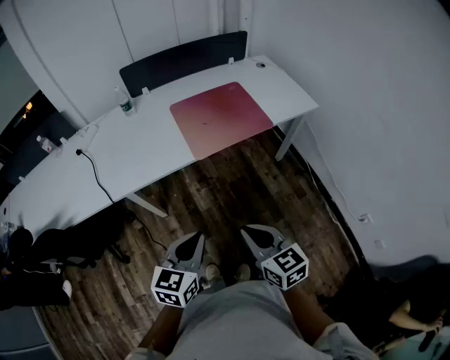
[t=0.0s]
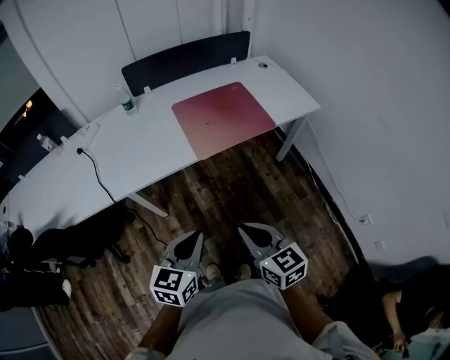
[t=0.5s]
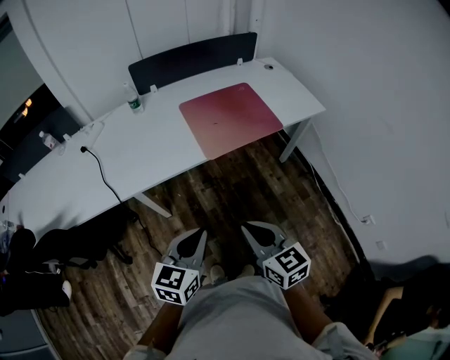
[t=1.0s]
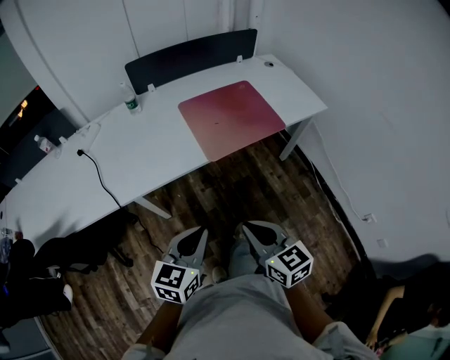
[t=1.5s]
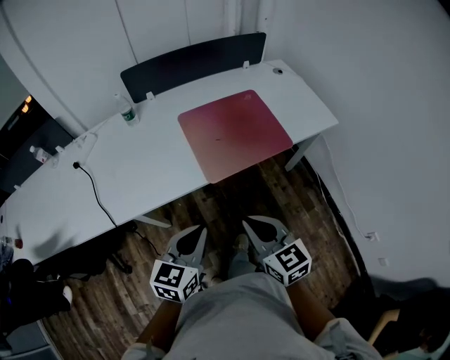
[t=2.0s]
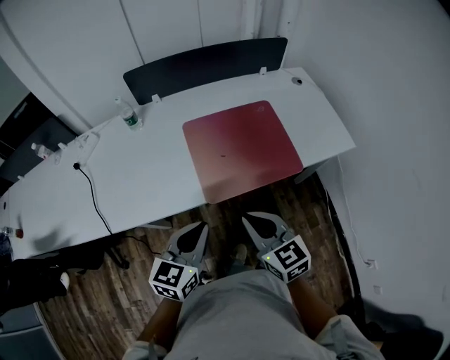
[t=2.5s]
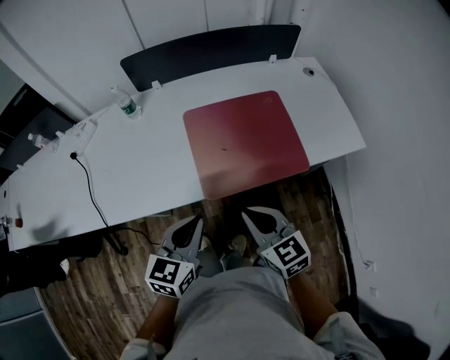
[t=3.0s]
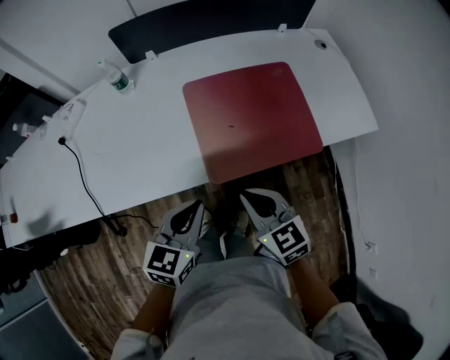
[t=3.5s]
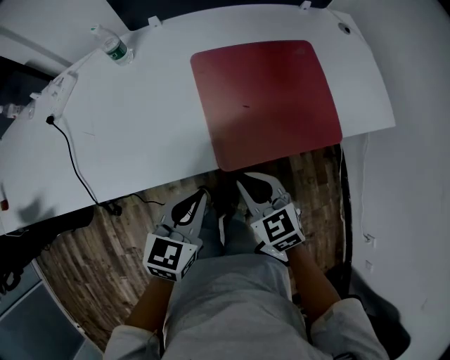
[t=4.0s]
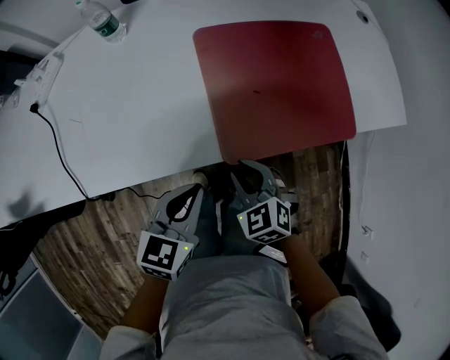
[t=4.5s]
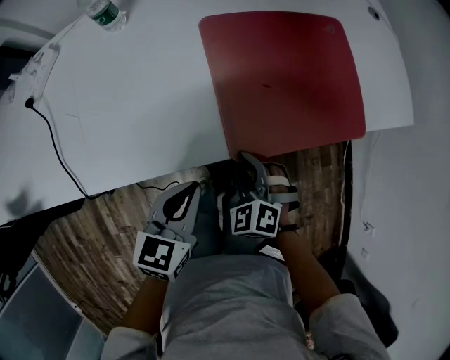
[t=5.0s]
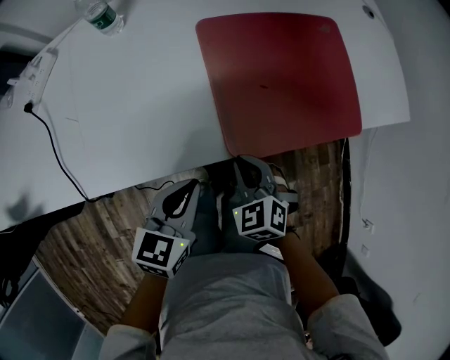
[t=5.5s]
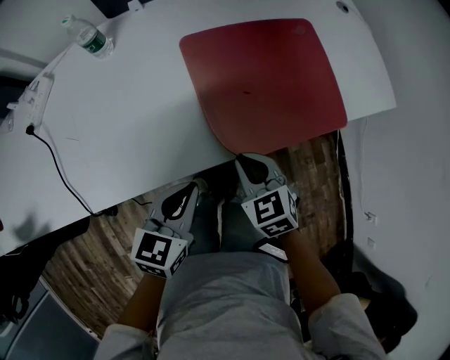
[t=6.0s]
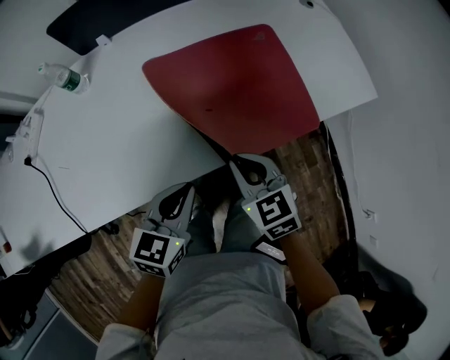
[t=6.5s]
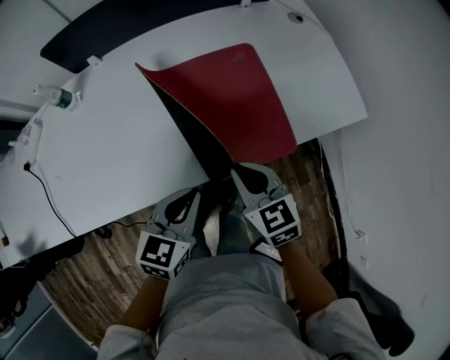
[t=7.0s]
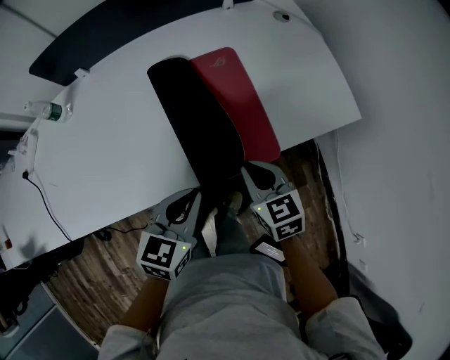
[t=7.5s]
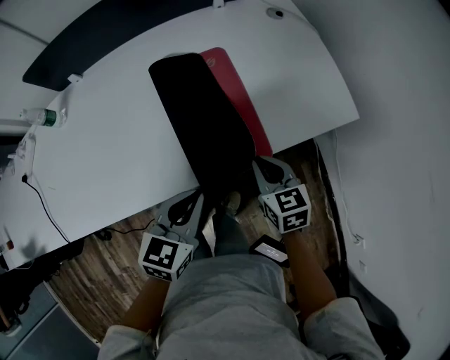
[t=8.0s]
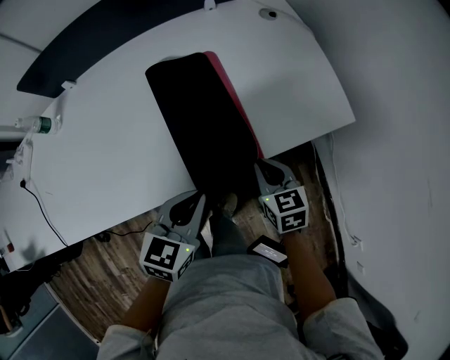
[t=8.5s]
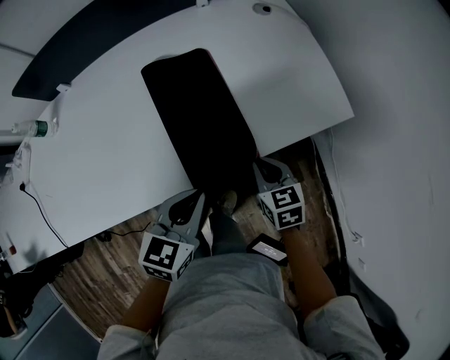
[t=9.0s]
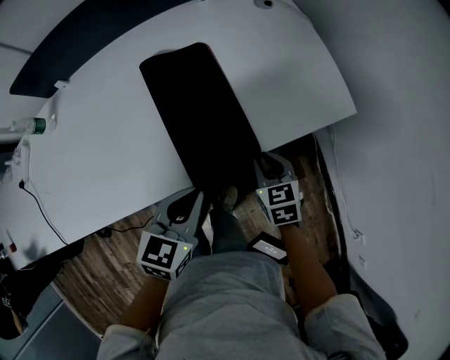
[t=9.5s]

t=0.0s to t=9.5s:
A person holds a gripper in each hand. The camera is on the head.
t=0.0s to t=2.0s: Both grippers move forward, approximately 15 cm.
t=2.0s to t=4.0s: The grippers both shift forward and downward by some 20 cm. The right gripper changes its angle by roughly 20 degrees.
t=4.0s to t=5.5s: The right gripper is displaced downward by approximately 10 cm, changes its angle by some 20 degrees, and opens, then closes once more. The left gripper heads downward, covering some 5 cm.
t=5.5s to t=7.5s: Both grippers move to the right, about 25 cm. The right gripper changes its angle by approximately 40 degrees.
t=7.5s to t=9.5s: The left gripper is displaced to the right by about 5 cm. The right gripper moves to the right and downward, roughly 15 cm.

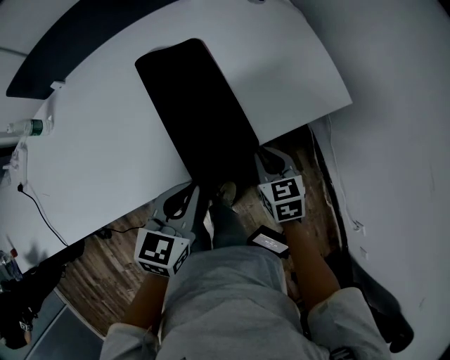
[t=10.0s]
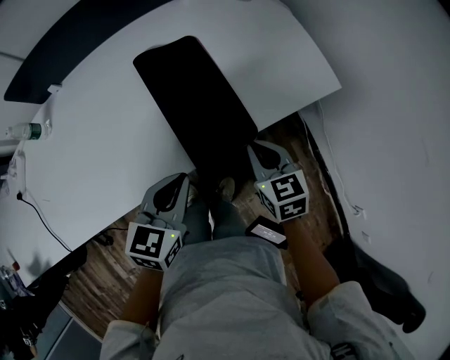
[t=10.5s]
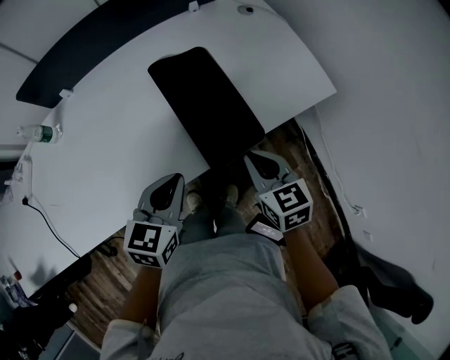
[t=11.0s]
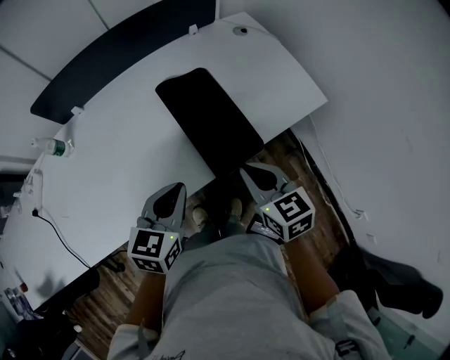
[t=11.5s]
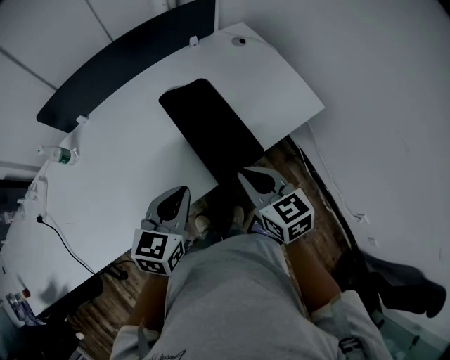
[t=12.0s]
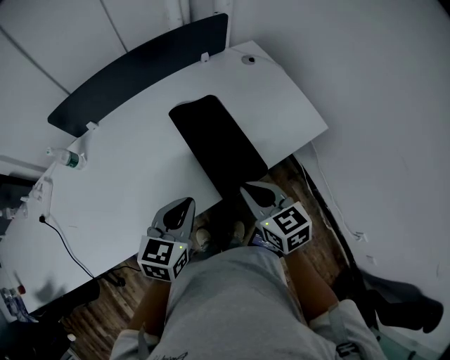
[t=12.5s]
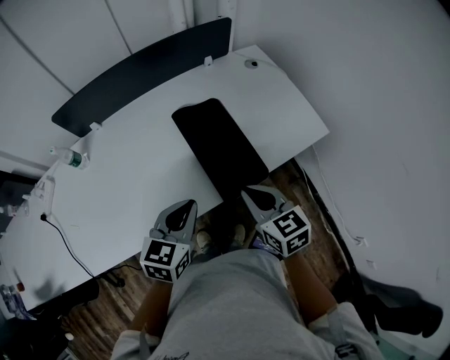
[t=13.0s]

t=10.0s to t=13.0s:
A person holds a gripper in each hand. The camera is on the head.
t=10.0s to t=11.5s: The left gripper is displaced to the left and upward by approximately 15 cm. The right gripper shifts some 20 cm upward and to the left.
t=11.5s to t=13.0s: The grippers move only a little.

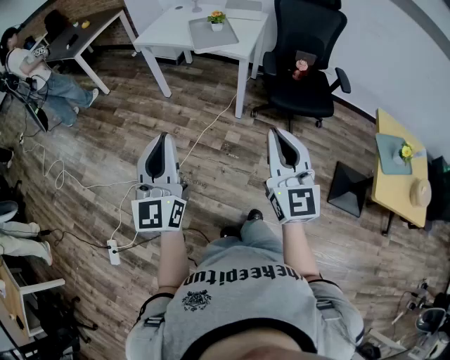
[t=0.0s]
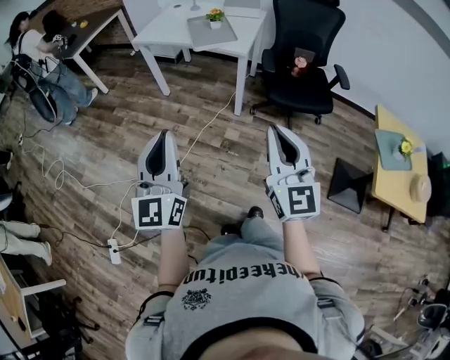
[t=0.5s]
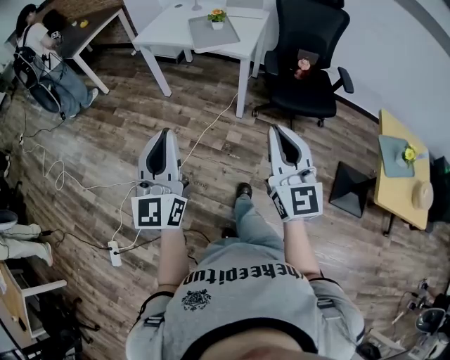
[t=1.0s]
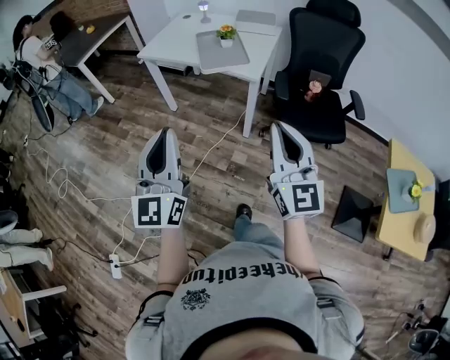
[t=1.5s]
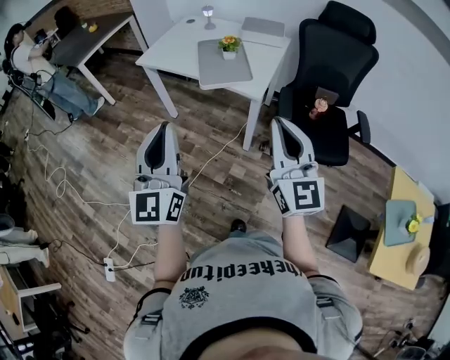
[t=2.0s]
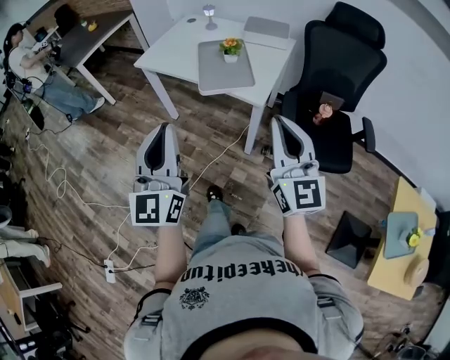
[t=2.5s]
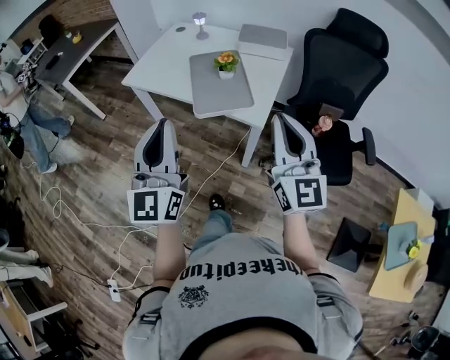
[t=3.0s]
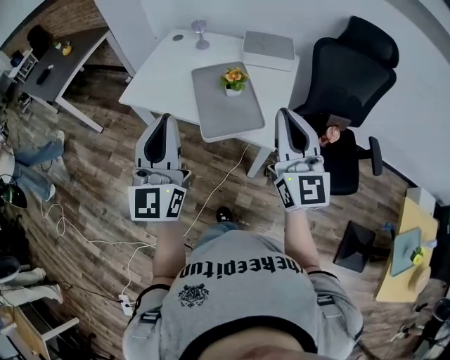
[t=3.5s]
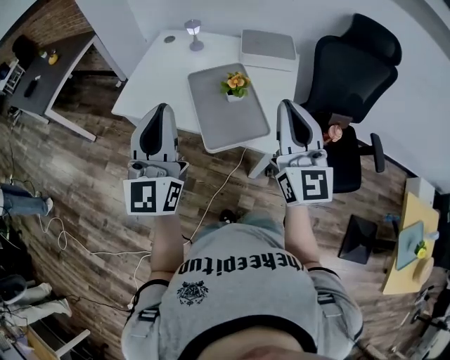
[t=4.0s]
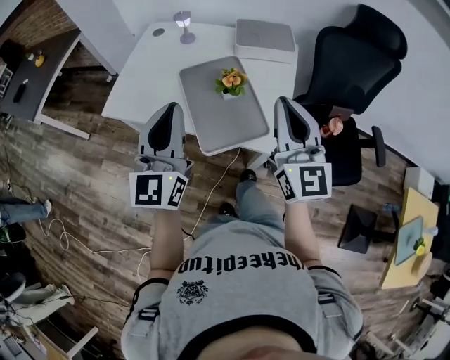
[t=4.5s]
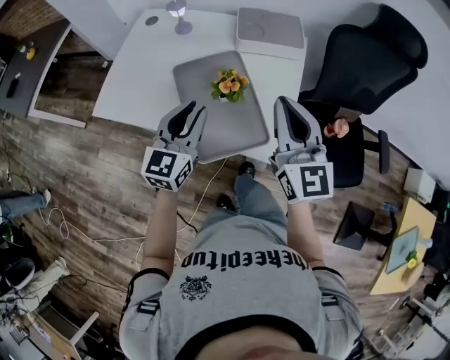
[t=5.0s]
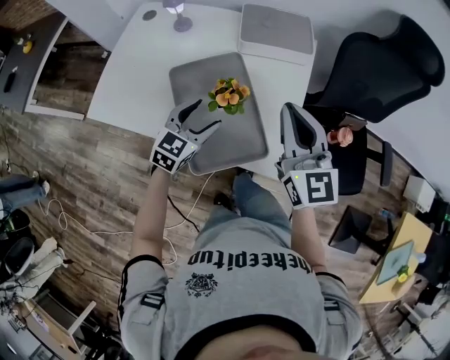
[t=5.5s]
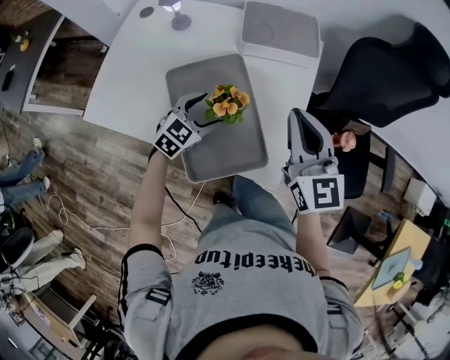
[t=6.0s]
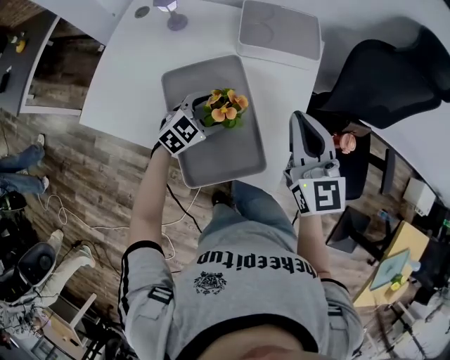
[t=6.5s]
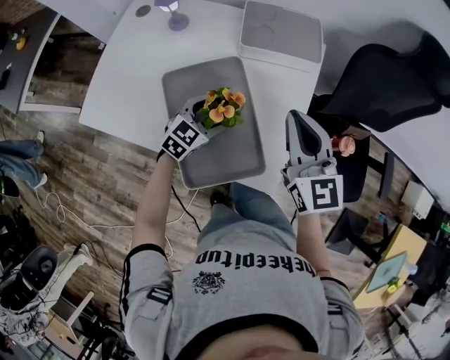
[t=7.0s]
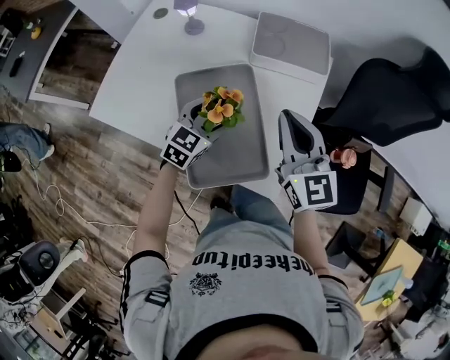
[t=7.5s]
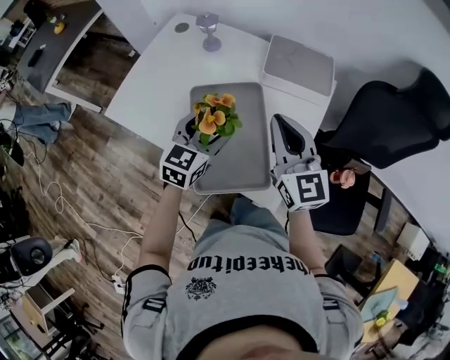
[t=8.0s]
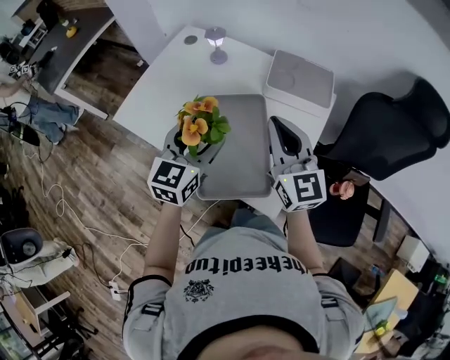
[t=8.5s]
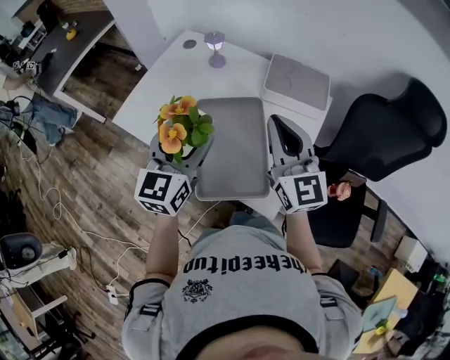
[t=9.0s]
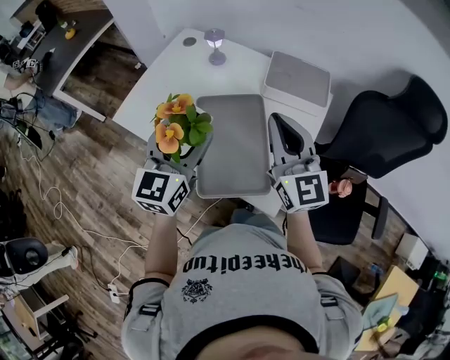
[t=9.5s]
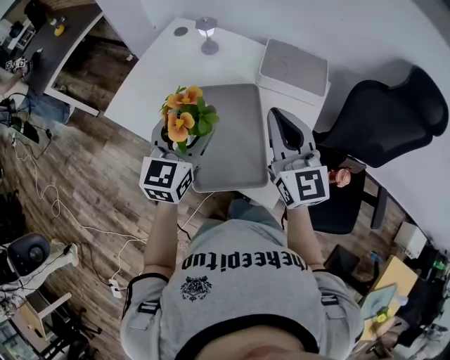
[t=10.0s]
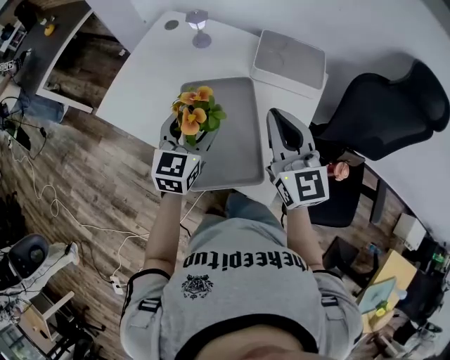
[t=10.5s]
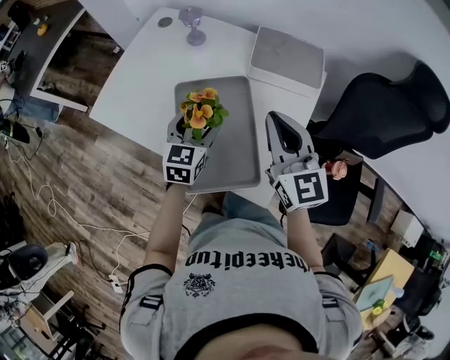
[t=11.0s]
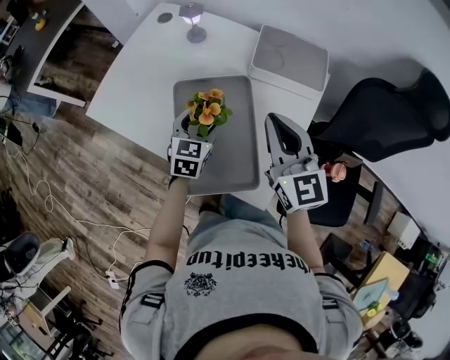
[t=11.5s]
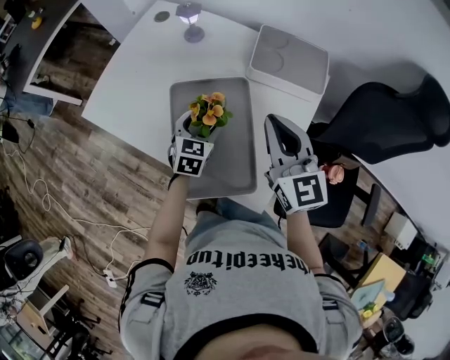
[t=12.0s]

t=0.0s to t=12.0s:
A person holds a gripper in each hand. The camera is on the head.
t=0.0s to t=2.0s: The two grippers go some 30 cm forward.
t=2.0s to t=4.0s: The grippers both shift forward by approximately 40 cm.
t=4.0s to t=6.0s: The left gripper heads downward and forward, covering approximately 50 cm, points its fingers about 50 degrees further downward, and opens, while the right gripper goes some 25 cm forward and downward, and changes its angle by approximately 20 degrees.
t=6.0s to t=8.0s: The left gripper shifts approximately 10 cm upward, and turns by roughly 30 degrees. Meanwhile the right gripper goes about 5 cm to the left.
t=8.0s to t=10.0s: The left gripper goes approximately 10 cm upward.
t=10.0s to t=12.0s: The right gripper goes about 5 cm downward, while the left gripper moves downward, roughly 20 cm, and turns by approximately 20 degrees.

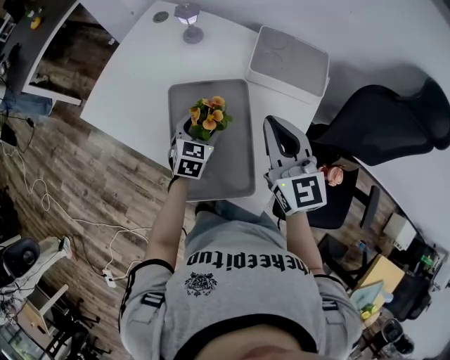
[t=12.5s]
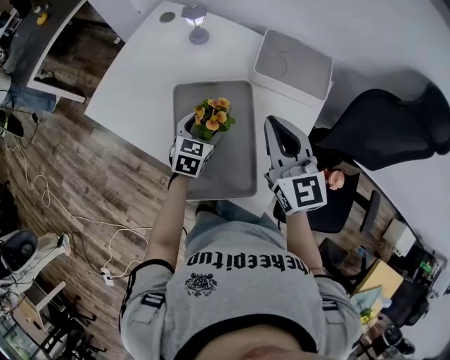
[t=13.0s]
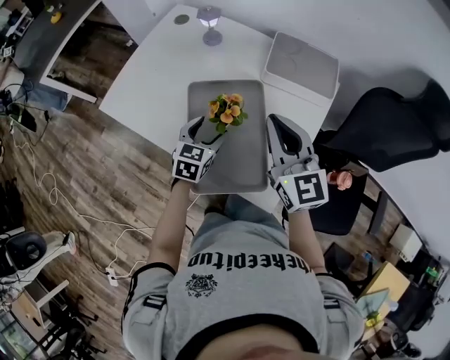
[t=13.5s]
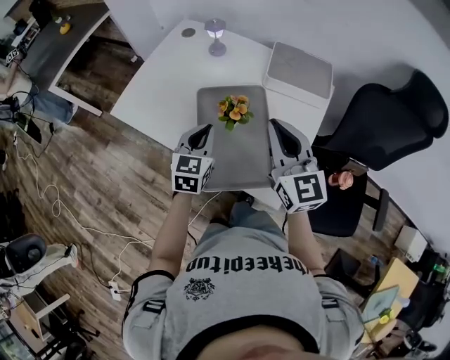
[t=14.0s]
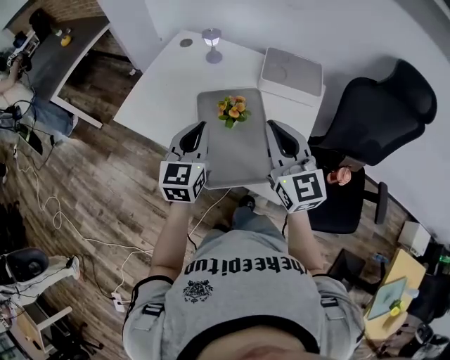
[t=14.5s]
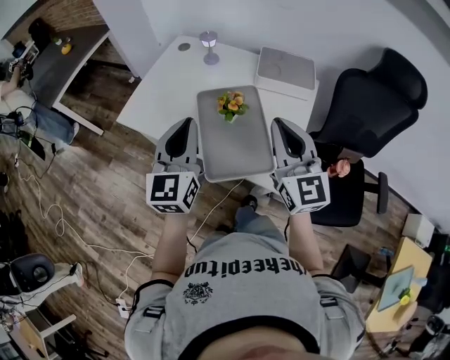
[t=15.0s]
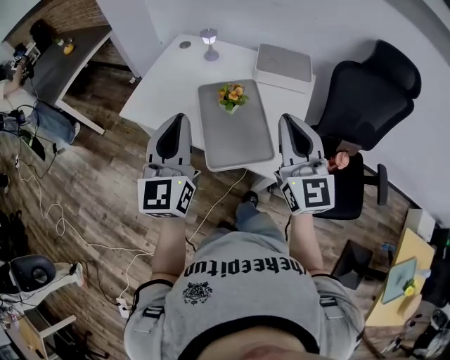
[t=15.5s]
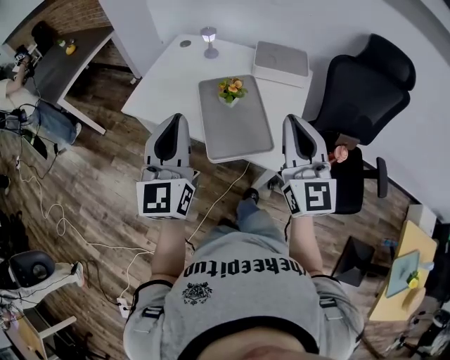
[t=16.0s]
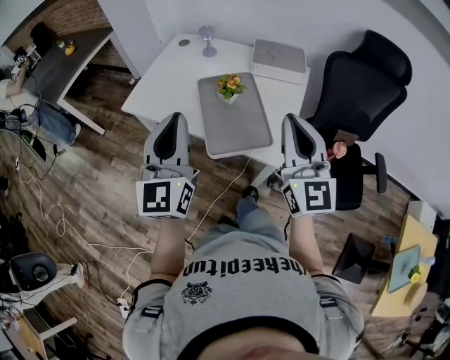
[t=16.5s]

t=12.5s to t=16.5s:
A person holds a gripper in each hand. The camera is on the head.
t=12.5s to t=14.5s: The right gripper travels backward, upward and to the left by approximately 15 cm. The left gripper heads upward and backward, covering approximately 25 cm, turns by approximately 30 degrees, and closes its fingers.
t=14.5s to t=16.5s: Both grippers move backward and upward, some 20 cm. The left gripper rotates approximately 20 degrees.
